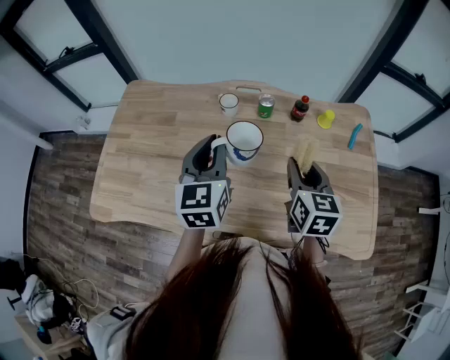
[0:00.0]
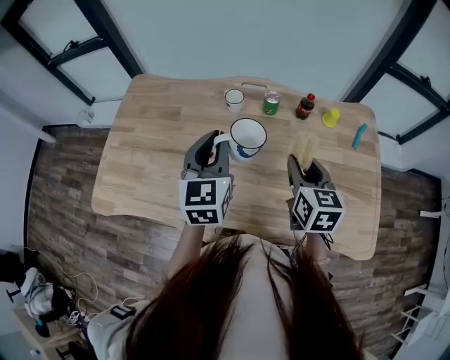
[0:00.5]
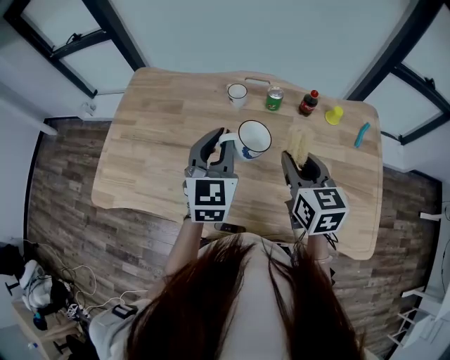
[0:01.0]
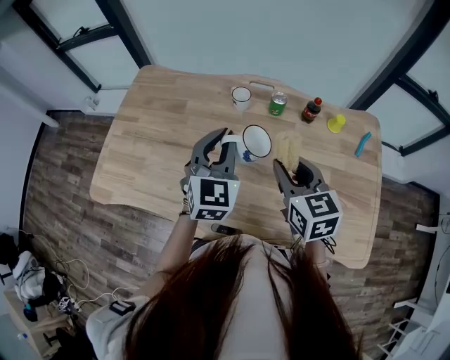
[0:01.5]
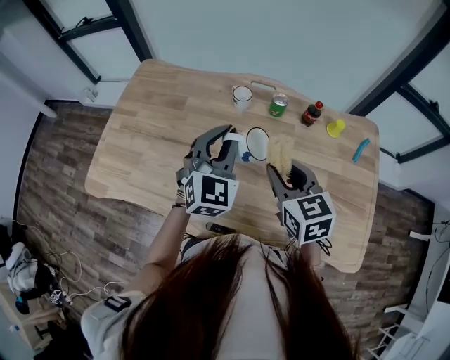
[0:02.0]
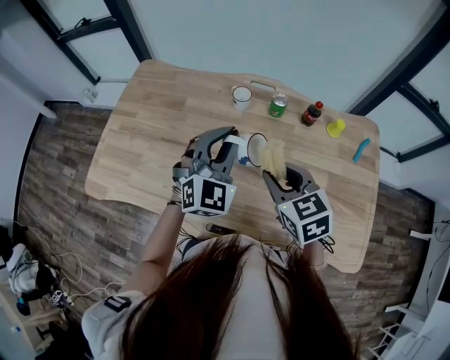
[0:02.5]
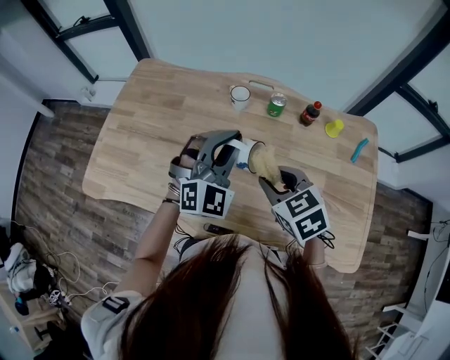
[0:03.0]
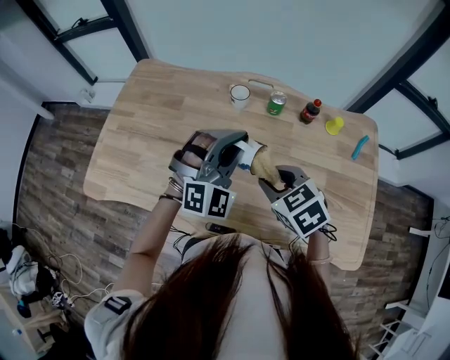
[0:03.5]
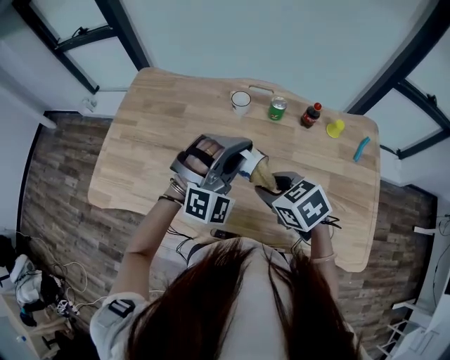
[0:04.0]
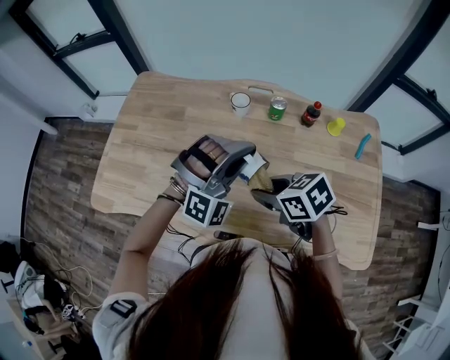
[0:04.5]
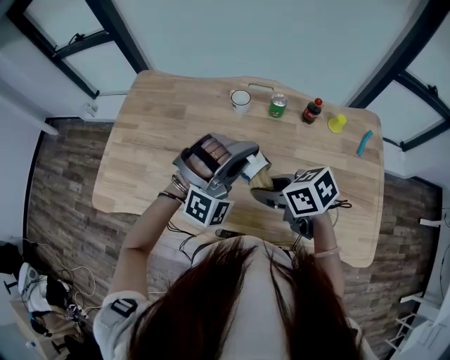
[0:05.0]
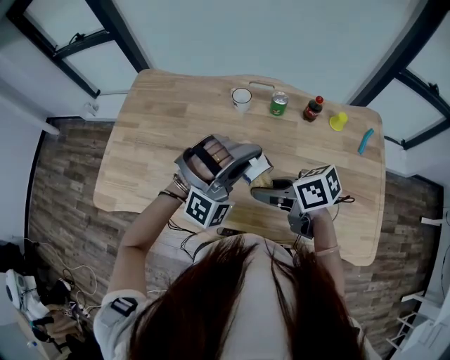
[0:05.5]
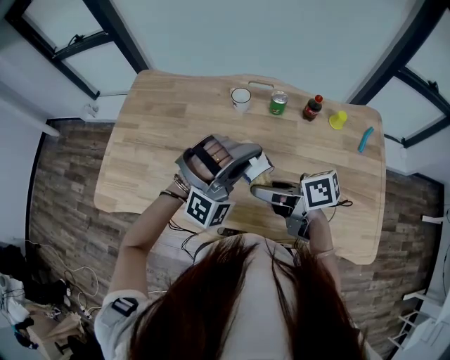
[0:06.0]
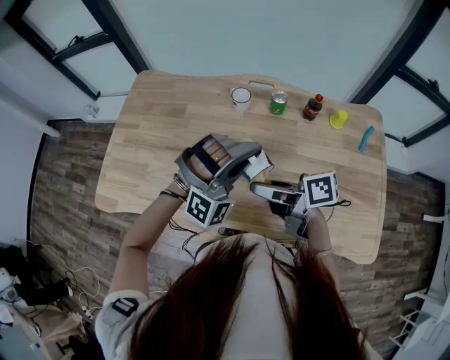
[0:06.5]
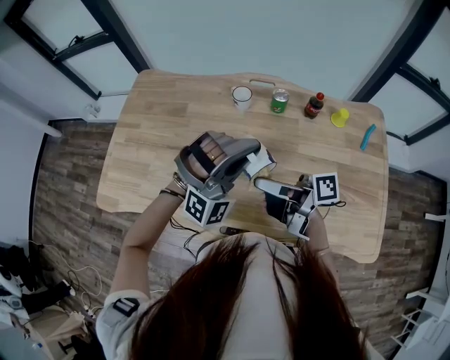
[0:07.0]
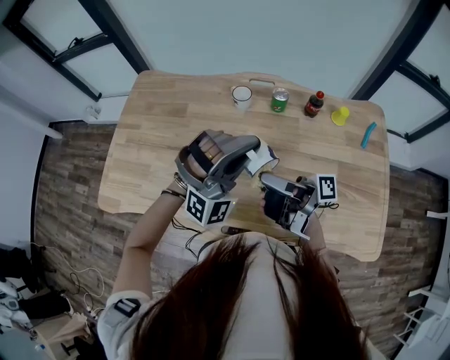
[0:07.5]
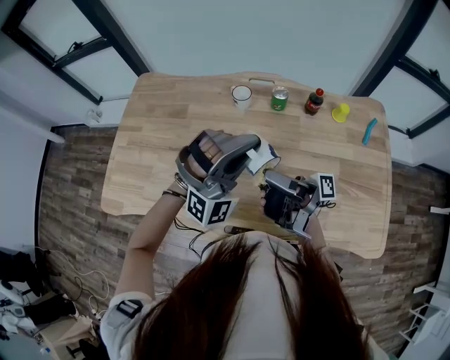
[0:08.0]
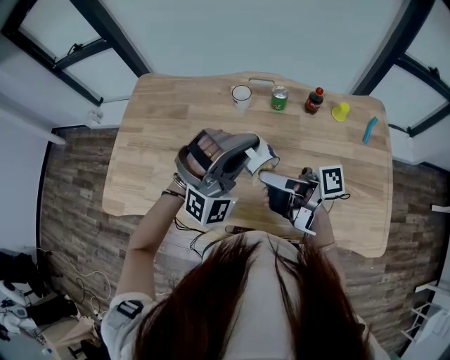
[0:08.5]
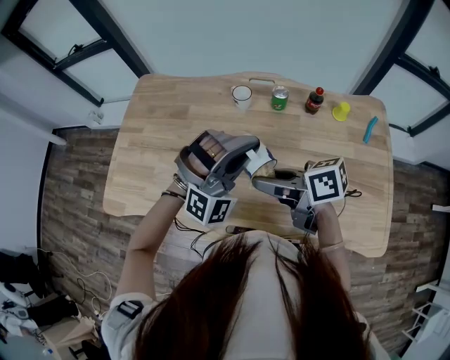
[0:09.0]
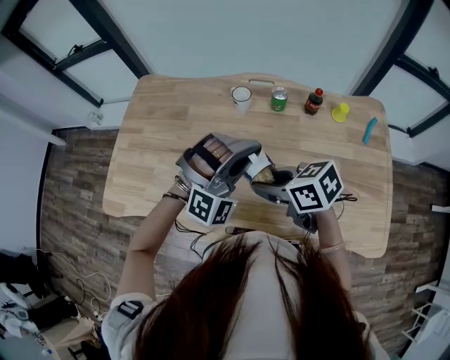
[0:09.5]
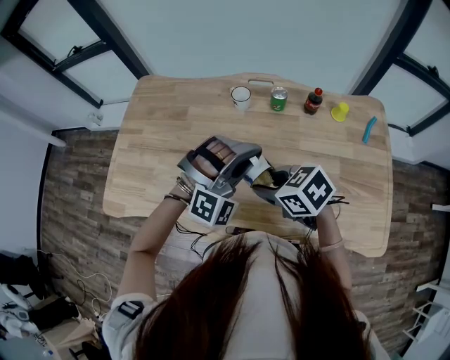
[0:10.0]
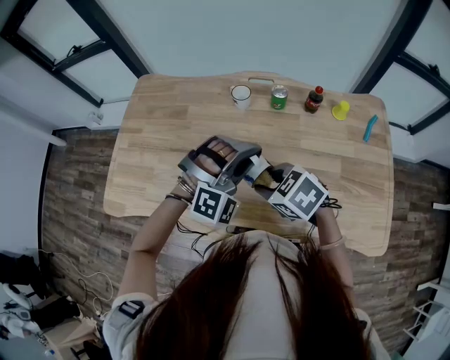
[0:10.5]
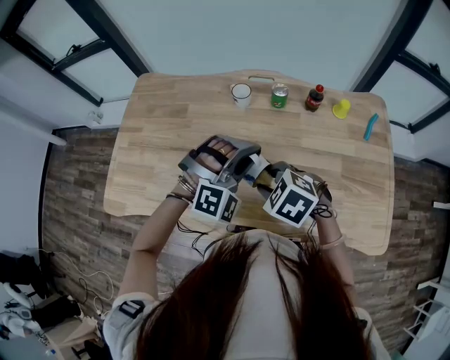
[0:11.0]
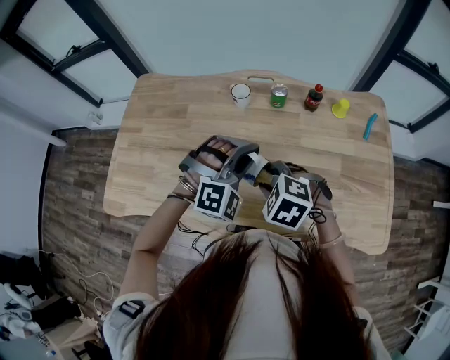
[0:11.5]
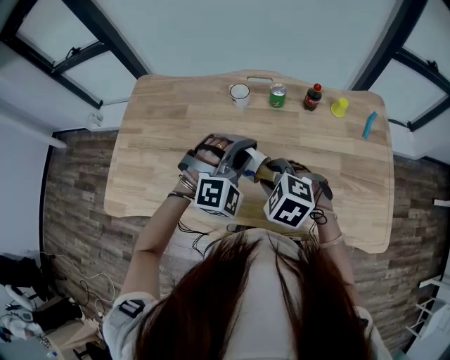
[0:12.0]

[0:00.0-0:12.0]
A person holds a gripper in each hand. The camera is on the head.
0.0 to 2.0 s: The right gripper moves to the left, approximately 10 cm, and changes its angle by roughly 30 degrees; the left gripper rotates roughly 30 degrees.
2.0 to 4.0 s: The left gripper rolls clockwise, seen from behind, by approximately 40 degrees; the right gripper heads downward, covering about 5 cm, and swivels approximately 30 degrees.
4.0 to 6.0 s: The right gripper tilts its fingers some 30 degrees upward.
6.0 to 8.0 s: The right gripper moves upward, roughly 5 cm, and angles its fingers upward, by roughly 40 degrees.
8.0 to 10.0 s: Both grippers travel together downward, about 5 cm. The right gripper points its fingers some 70 degrees further downward. The left gripper turns by approximately 20 degrees.
10.0 to 12.0 s: The right gripper turns by about 40 degrees.

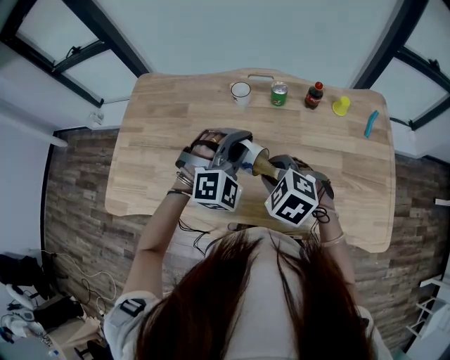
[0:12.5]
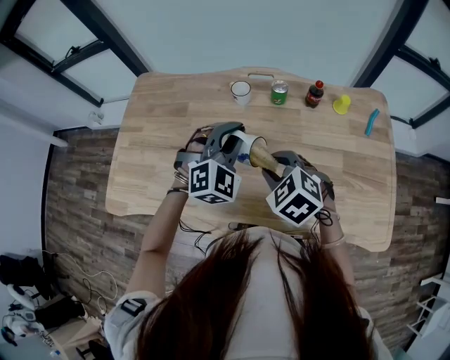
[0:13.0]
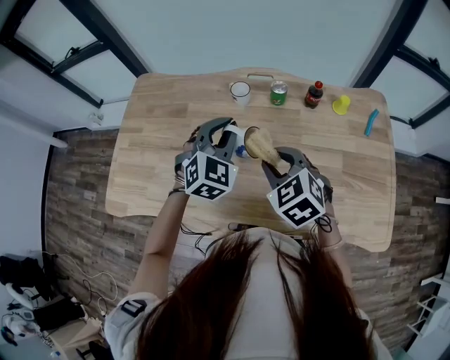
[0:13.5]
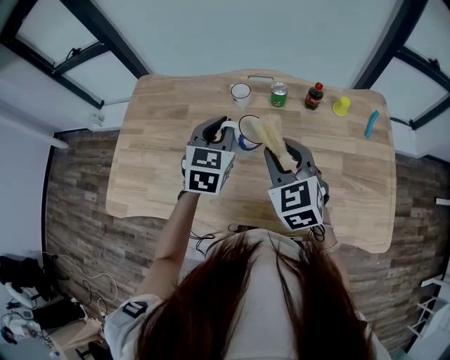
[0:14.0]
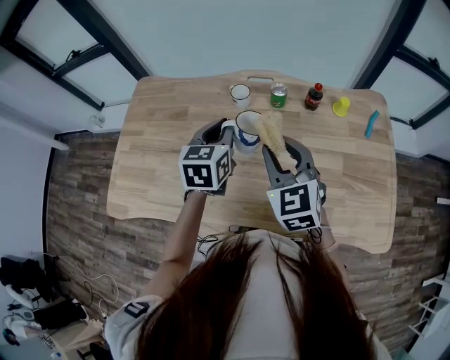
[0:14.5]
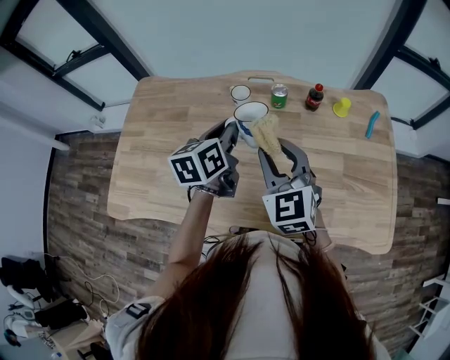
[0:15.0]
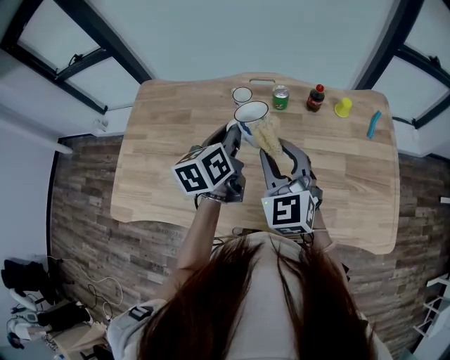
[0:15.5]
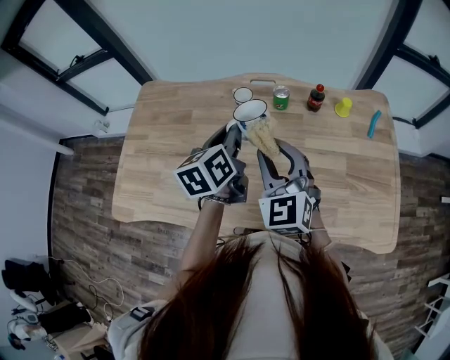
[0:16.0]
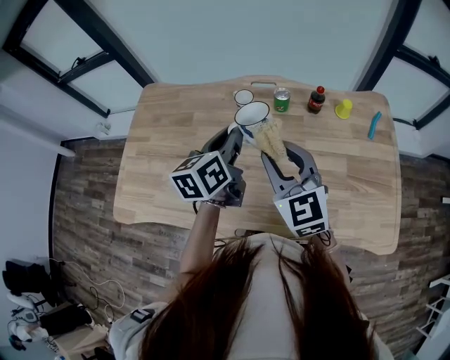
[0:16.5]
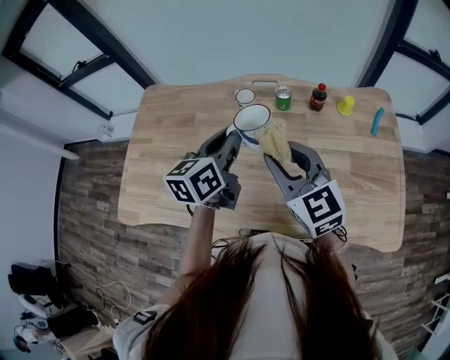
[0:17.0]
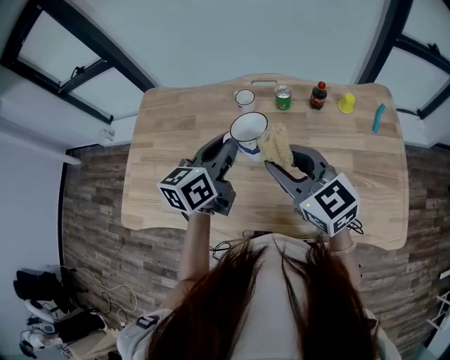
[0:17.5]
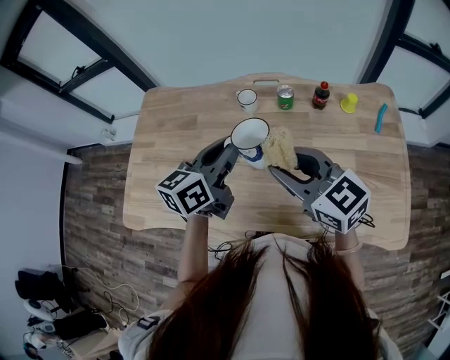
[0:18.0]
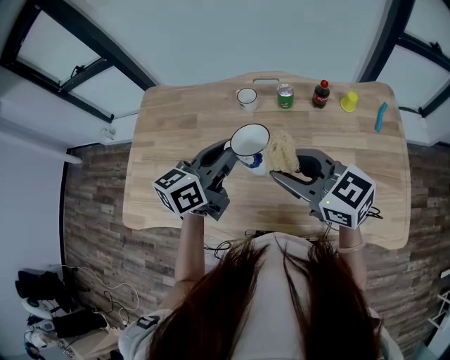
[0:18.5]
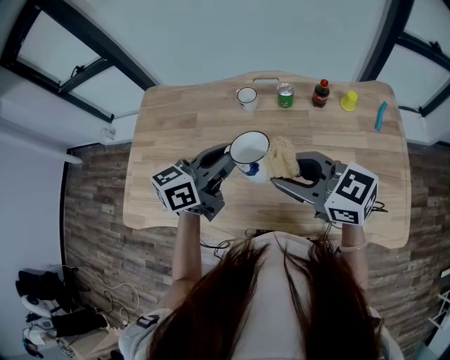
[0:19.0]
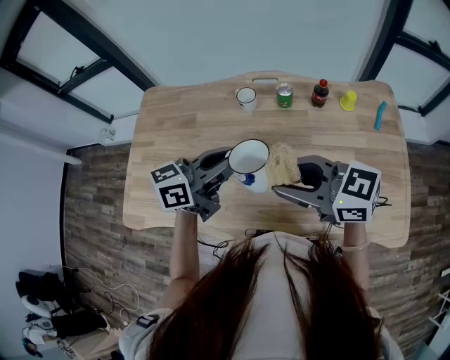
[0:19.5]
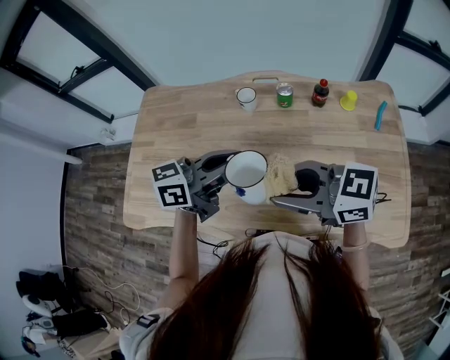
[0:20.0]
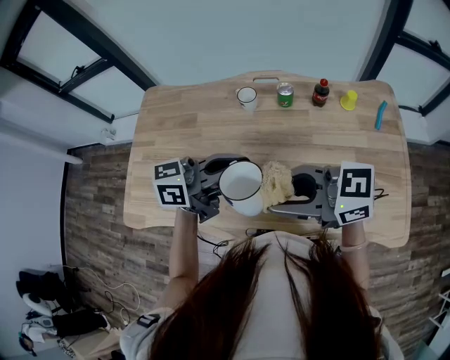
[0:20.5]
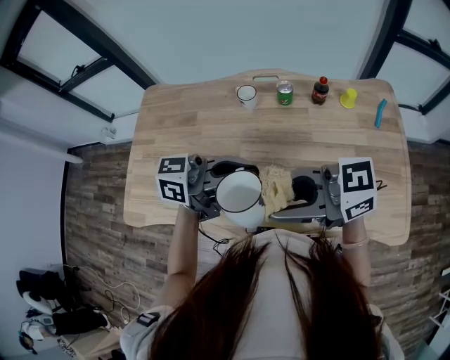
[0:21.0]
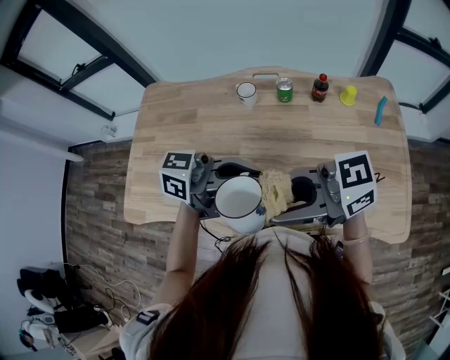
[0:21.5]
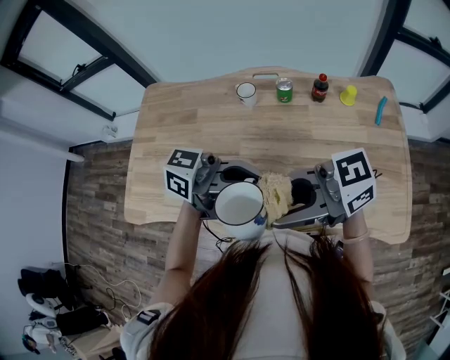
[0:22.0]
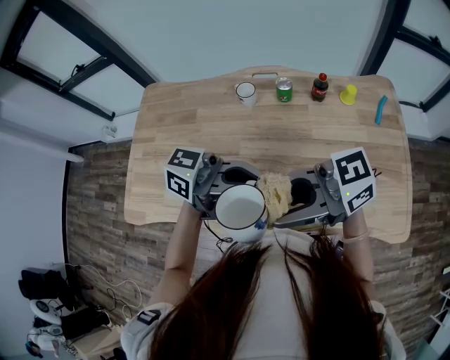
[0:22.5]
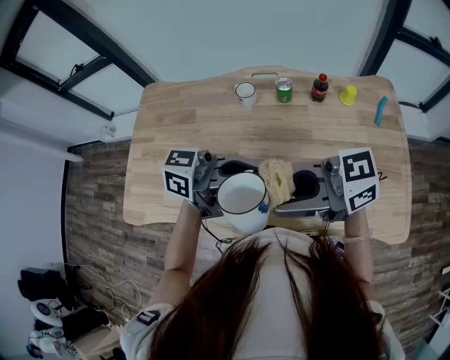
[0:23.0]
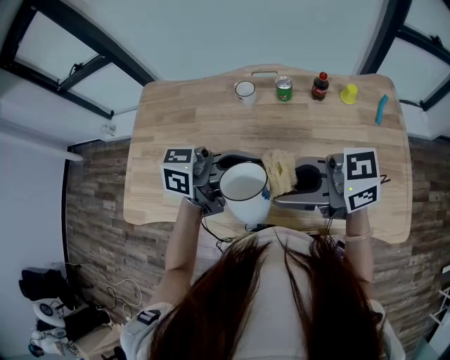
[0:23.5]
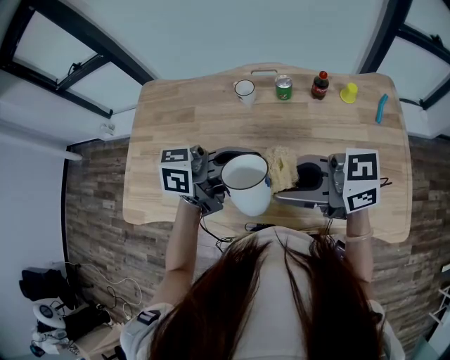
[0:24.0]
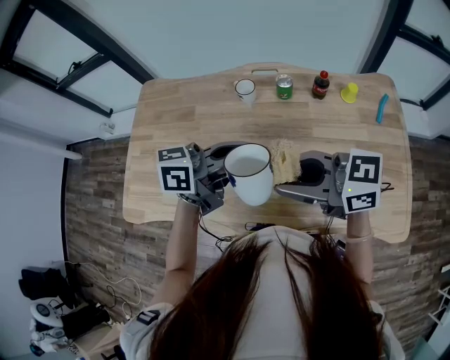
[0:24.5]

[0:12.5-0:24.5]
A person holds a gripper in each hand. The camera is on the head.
12.5 to 14.5 s: The right gripper is displaced upward and forward by approximately 10 cm, and points its fingers about 40 degrees further upward; the left gripper heads forward and to the left, covering some 10 cm, and twists approximately 70 degrees counterclockwise, seen from behind.
14.5 to 16.5 s: The left gripper turns by some 30 degrees.
16.5 to 18.5 s: The left gripper turns by about 20 degrees. Meanwhile the right gripper swivels approximately 30 degrees.
18.5 to 20.5 s: The left gripper moves roughly 5 cm, and rotates roughly 30 degrees. The right gripper changes place by some 10 cm, and rotates some 30 degrees.
20.5 to 22.5 s: The right gripper changes its angle by about 20 degrees. The left gripper ends up roughly 10 cm from where it was, and rotates some 30 degrees.
22.5 to 24.5 s: The right gripper changes place by about 10 cm, and swivels about 30 degrees. The left gripper ends up some 10 cm from where it was, and rotates approximately 30 degrees.

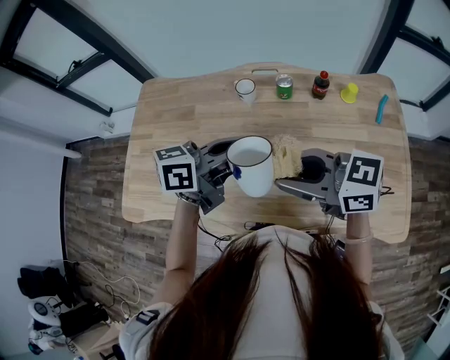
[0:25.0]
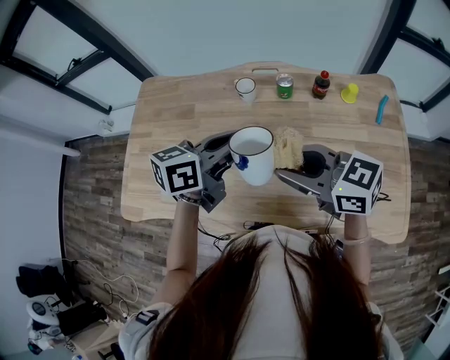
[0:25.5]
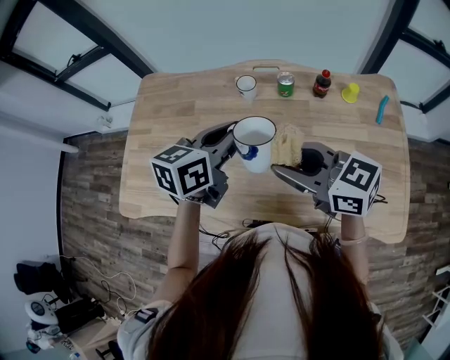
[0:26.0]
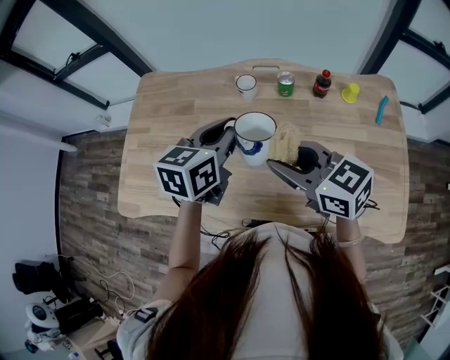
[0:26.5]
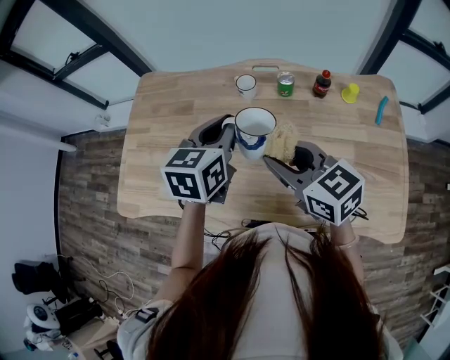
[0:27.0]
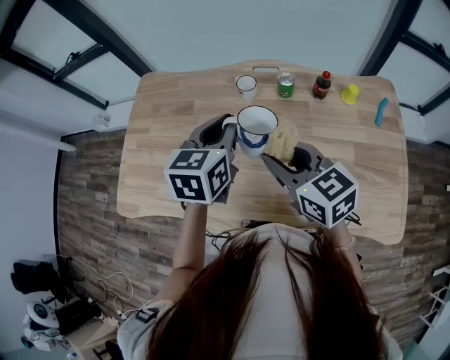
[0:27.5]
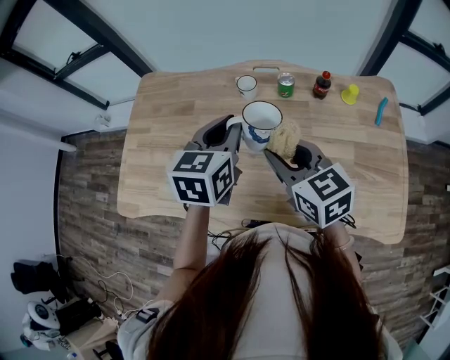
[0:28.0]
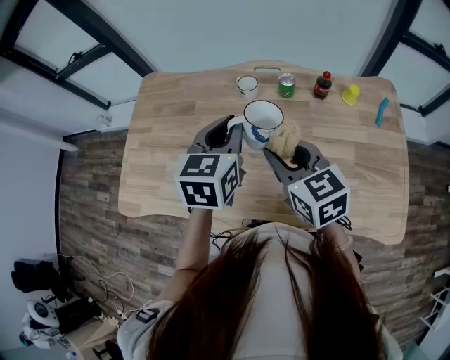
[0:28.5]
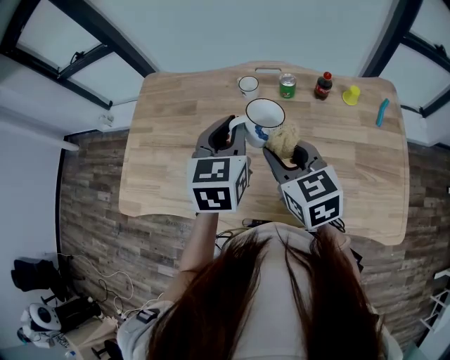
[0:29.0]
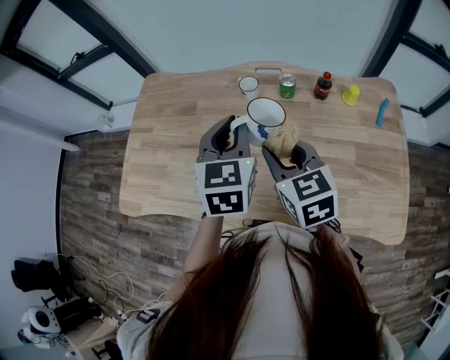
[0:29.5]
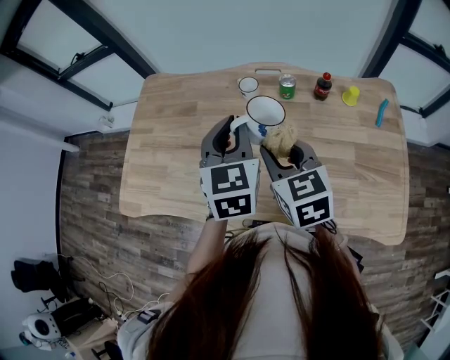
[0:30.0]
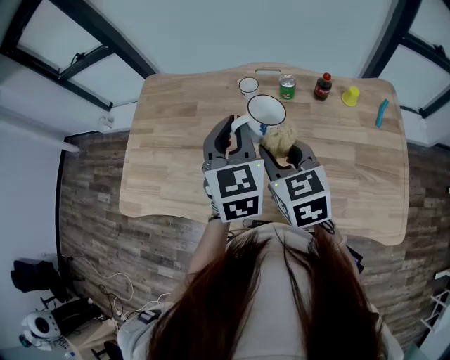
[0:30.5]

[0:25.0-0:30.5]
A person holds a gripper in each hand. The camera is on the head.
25.0 to 27.0 s: The right gripper shifts by about 5 cm, and swivels approximately 30 degrees, while the left gripper ends up approximately 10 cm from where it was, and swivels about 50 degrees.
27.0 to 28.5 s: There are only small adjustments of the grippers.
28.5 to 30.5 s: The left gripper changes its angle by about 20 degrees.
